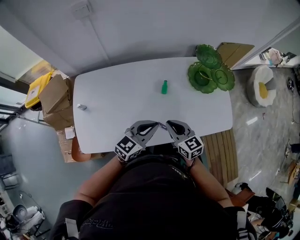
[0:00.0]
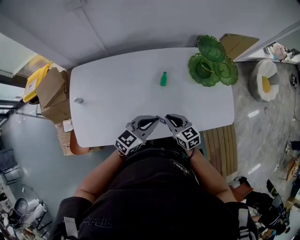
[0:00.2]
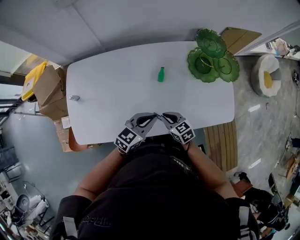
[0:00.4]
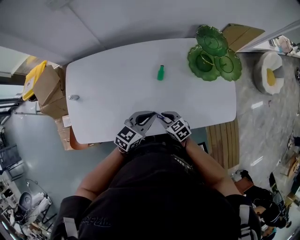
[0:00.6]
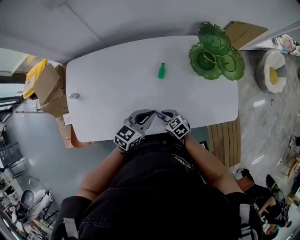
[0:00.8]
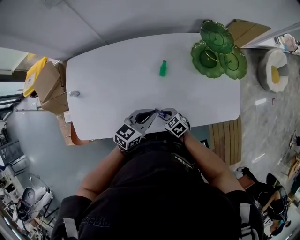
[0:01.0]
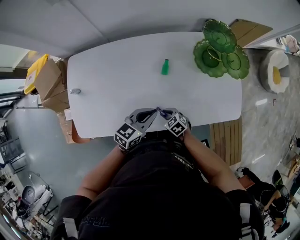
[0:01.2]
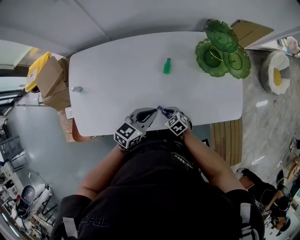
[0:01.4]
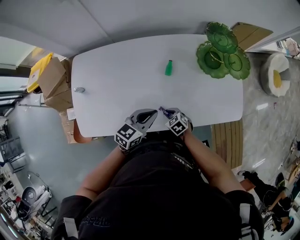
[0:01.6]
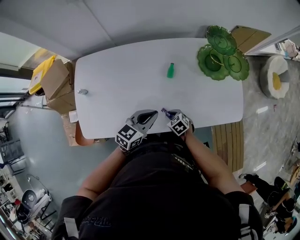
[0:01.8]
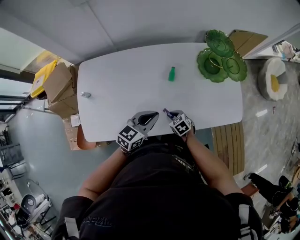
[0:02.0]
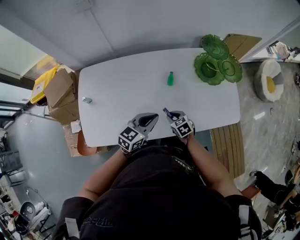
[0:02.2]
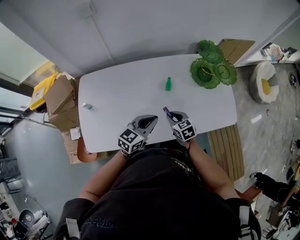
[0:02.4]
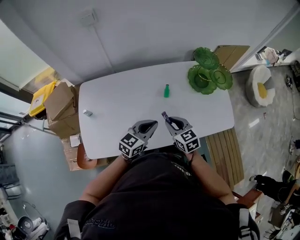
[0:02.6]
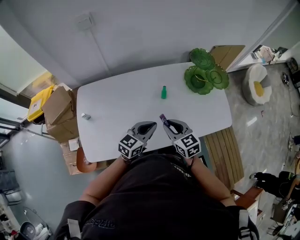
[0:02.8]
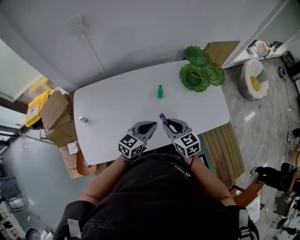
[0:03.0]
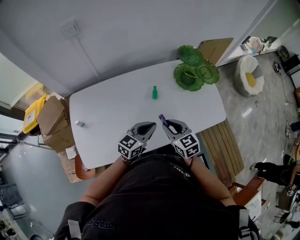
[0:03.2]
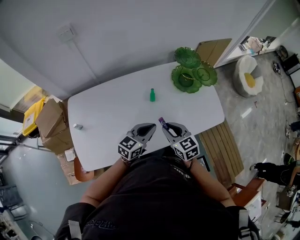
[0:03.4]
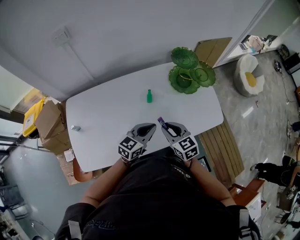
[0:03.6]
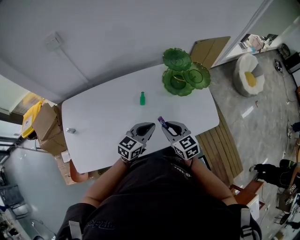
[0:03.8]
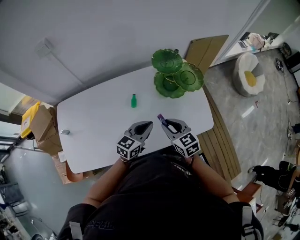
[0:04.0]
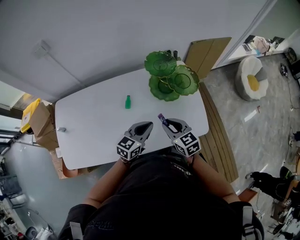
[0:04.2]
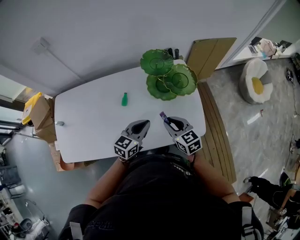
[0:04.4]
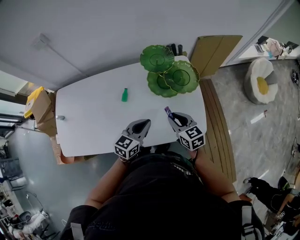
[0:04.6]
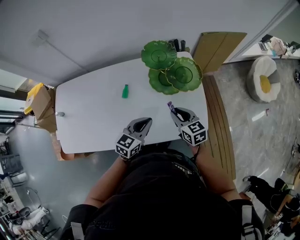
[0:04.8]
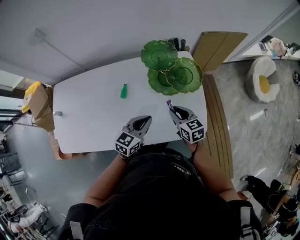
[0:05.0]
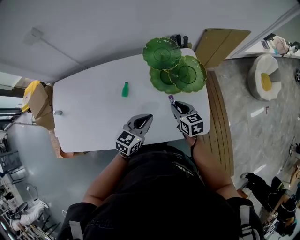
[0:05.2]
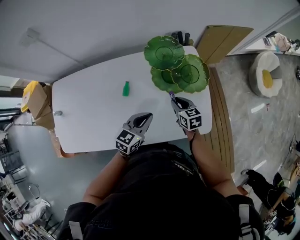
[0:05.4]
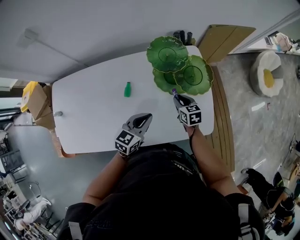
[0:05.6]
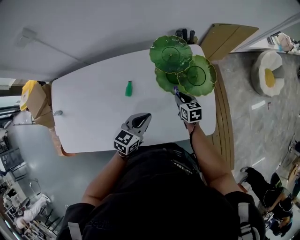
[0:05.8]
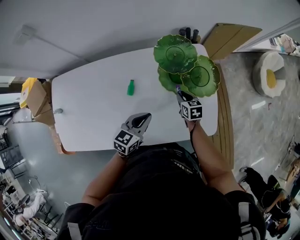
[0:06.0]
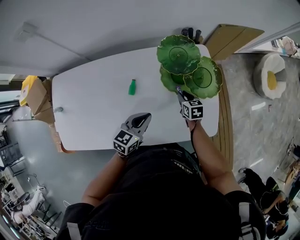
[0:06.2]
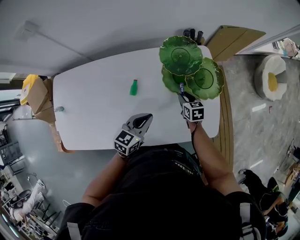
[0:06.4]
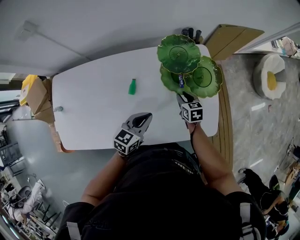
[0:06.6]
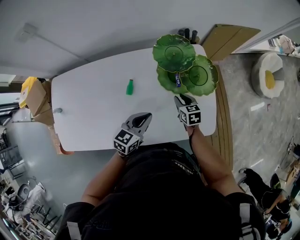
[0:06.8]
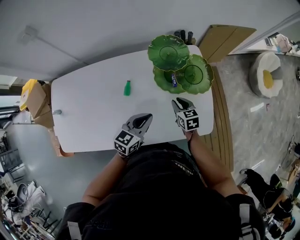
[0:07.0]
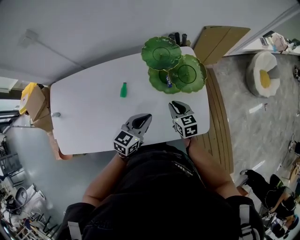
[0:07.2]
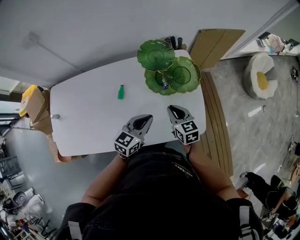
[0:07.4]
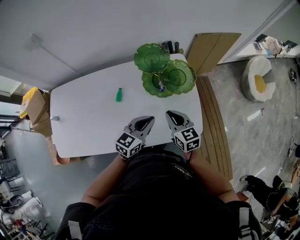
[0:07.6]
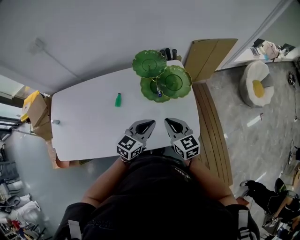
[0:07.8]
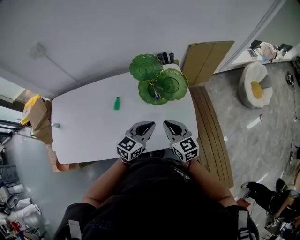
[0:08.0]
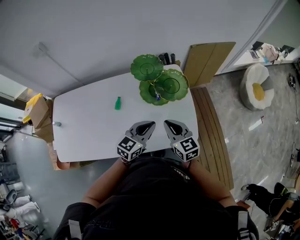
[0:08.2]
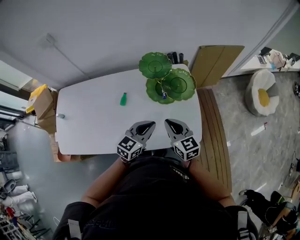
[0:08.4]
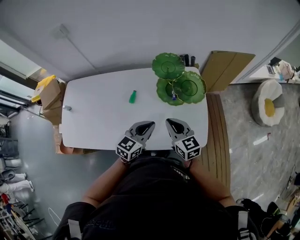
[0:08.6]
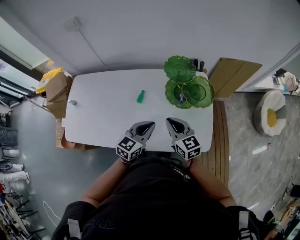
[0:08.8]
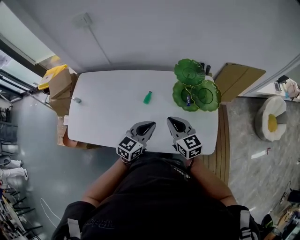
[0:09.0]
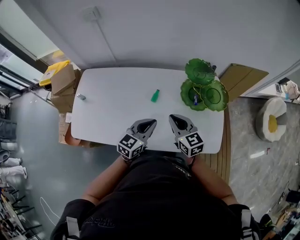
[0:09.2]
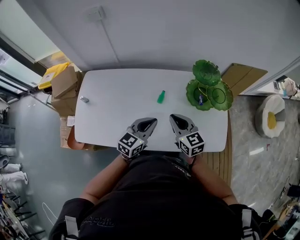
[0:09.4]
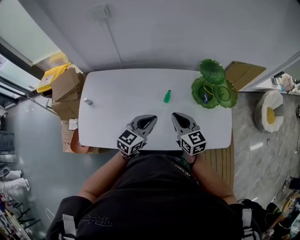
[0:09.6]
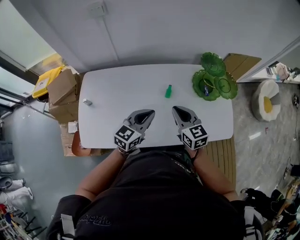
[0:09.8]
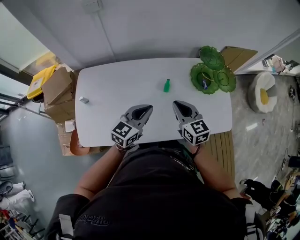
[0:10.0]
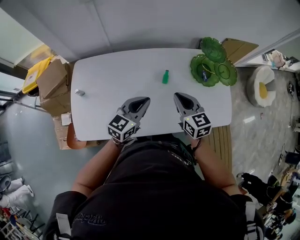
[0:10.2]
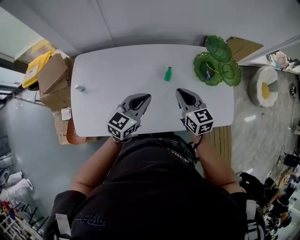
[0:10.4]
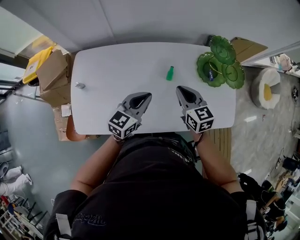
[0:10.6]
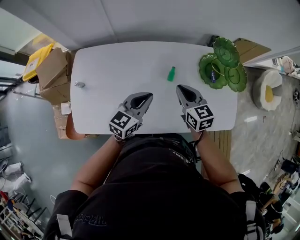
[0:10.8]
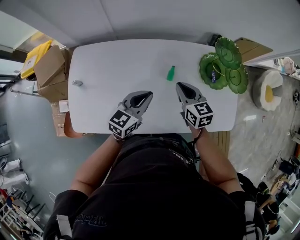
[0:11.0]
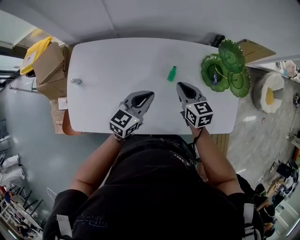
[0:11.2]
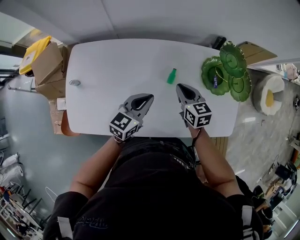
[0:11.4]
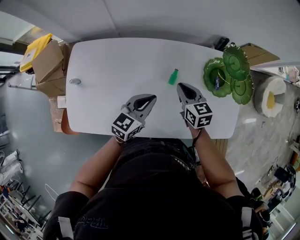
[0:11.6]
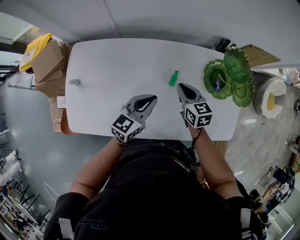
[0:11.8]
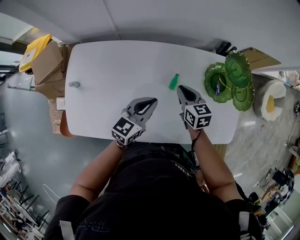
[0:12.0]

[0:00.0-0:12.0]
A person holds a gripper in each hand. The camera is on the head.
0:00.0 to 0:01.6: The left gripper travels downward by approximately 10 cm. Meanwhile the right gripper moves downward, about 25 cm, and tilts its fingers roughly 40 degrees downward.
0:01.6 to 0:03.0: The left gripper is displaced upward by roughly 5 cm. The right gripper is displaced upward by roughly 25 cm, and angles its fingers upward, by roughly 30 degrees.
0:03.0 to 0:04.4: The grippers both shift to the right and forward by roughly 25 cm.
0:04.4 to 0:06.0: The left gripper is displaced downward by some 5 cm; the right gripper is displaced downward and forward by roughly 25 cm, and rotates some 20 degrees.
0:06.0 to 0:07.6: The right gripper is displaced upward and backward by roughly 20 cm, and swivels about 20 degrees, while the left gripper heads to the right and upward, covering approximately 10 cm.
0:07.6 to 0:09.0: Both grippers travel together to the left, roughly 10 cm.
0:09.0 to 0:10.4: Both grippers travel together to the left, roughly 20 cm.
0:10.4 to 0:12.0: The right gripper goes about 15 cm forward and downward; the left gripper shifts some 10 cm forward and downward.

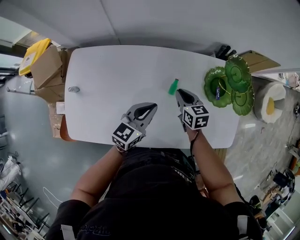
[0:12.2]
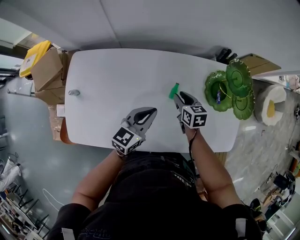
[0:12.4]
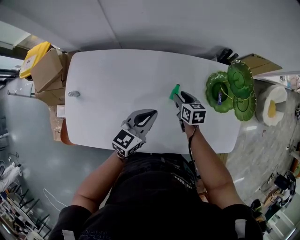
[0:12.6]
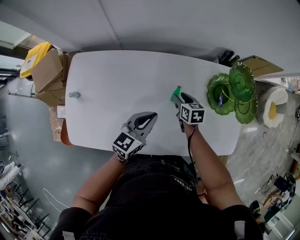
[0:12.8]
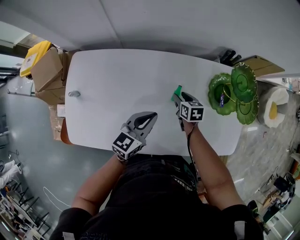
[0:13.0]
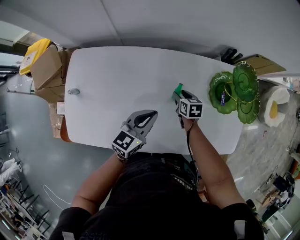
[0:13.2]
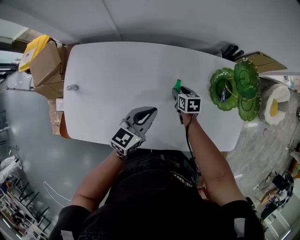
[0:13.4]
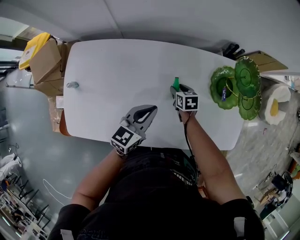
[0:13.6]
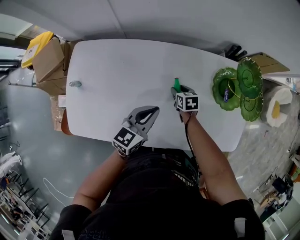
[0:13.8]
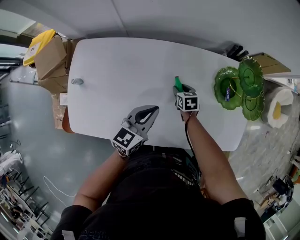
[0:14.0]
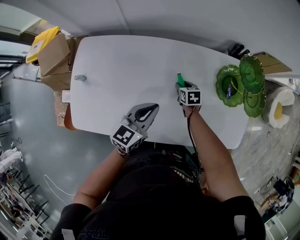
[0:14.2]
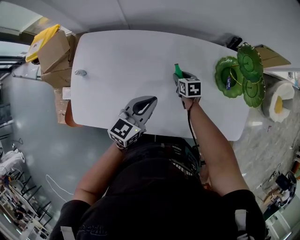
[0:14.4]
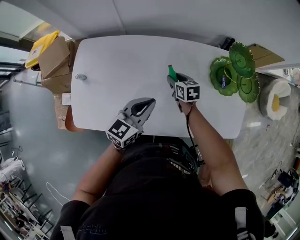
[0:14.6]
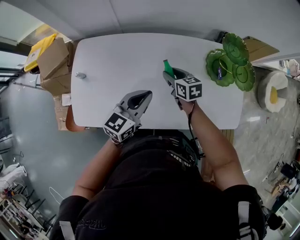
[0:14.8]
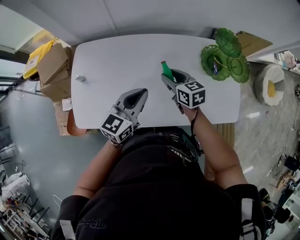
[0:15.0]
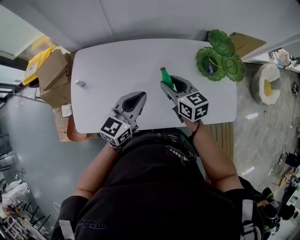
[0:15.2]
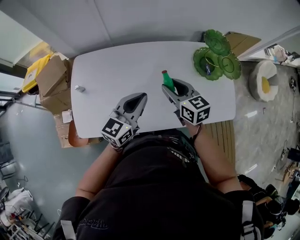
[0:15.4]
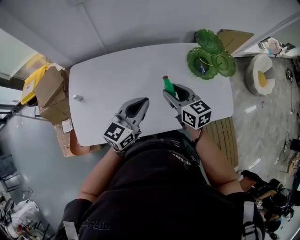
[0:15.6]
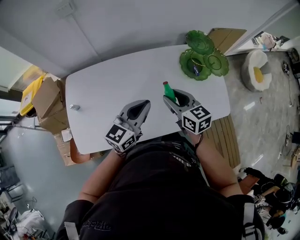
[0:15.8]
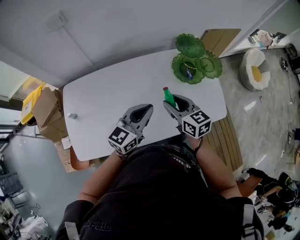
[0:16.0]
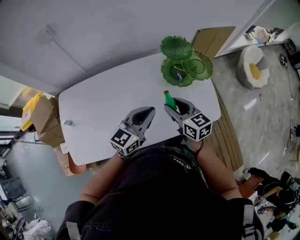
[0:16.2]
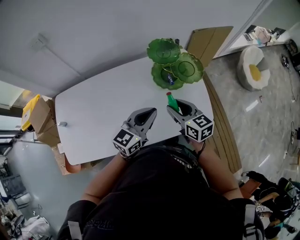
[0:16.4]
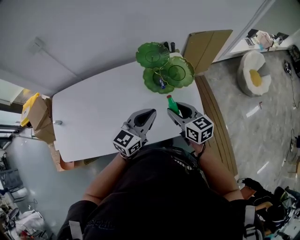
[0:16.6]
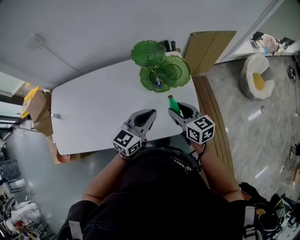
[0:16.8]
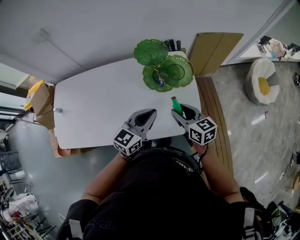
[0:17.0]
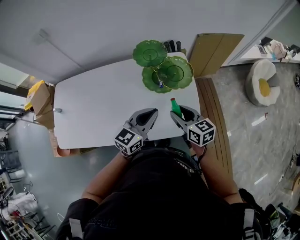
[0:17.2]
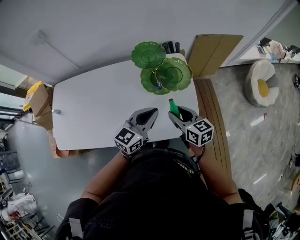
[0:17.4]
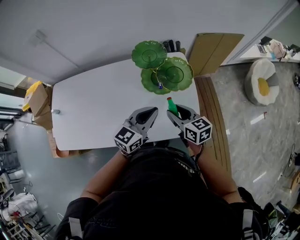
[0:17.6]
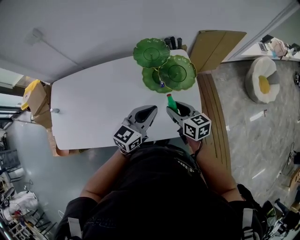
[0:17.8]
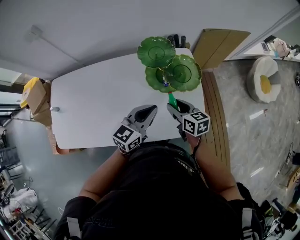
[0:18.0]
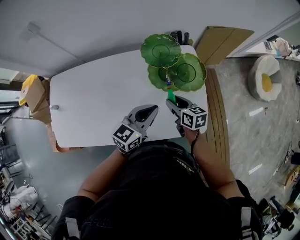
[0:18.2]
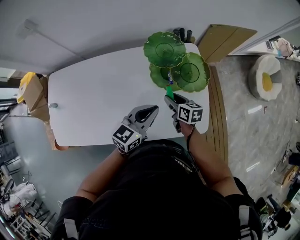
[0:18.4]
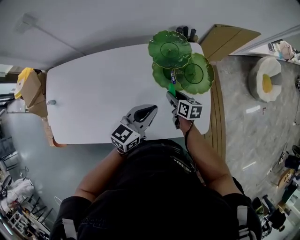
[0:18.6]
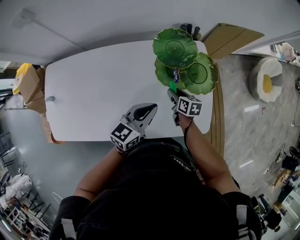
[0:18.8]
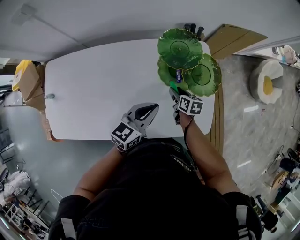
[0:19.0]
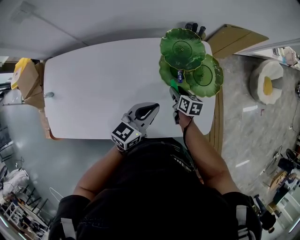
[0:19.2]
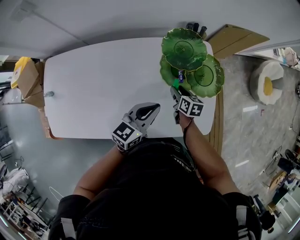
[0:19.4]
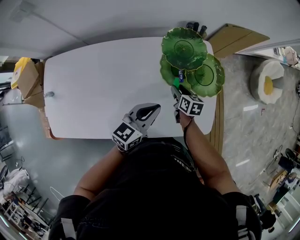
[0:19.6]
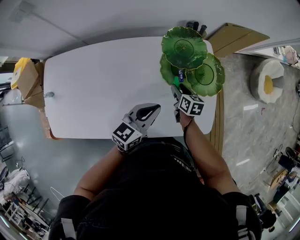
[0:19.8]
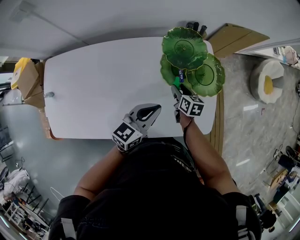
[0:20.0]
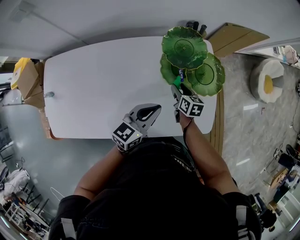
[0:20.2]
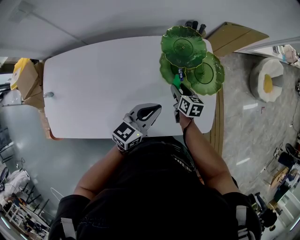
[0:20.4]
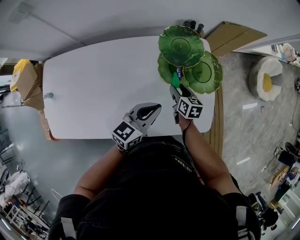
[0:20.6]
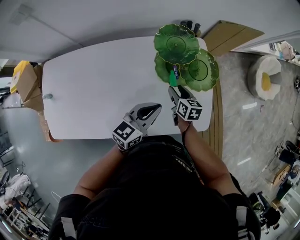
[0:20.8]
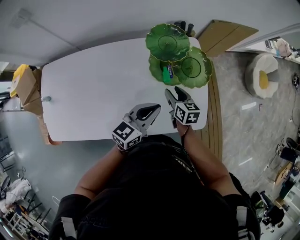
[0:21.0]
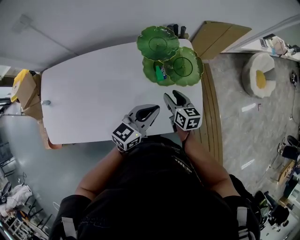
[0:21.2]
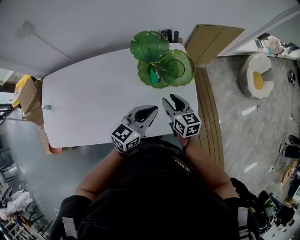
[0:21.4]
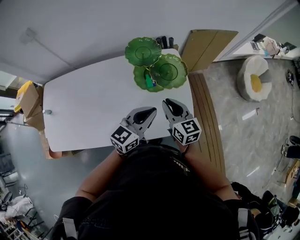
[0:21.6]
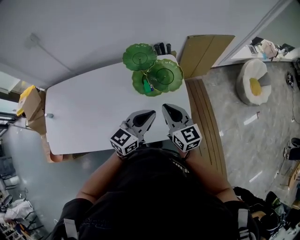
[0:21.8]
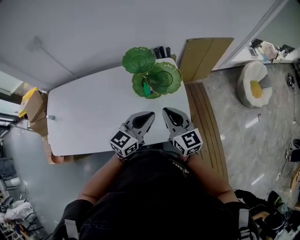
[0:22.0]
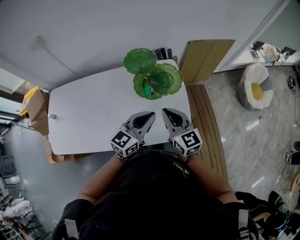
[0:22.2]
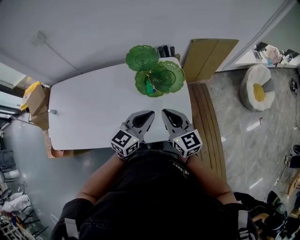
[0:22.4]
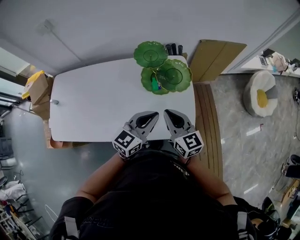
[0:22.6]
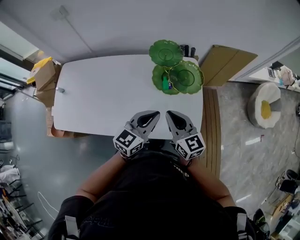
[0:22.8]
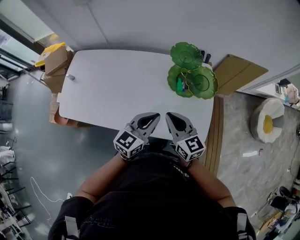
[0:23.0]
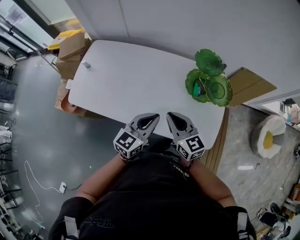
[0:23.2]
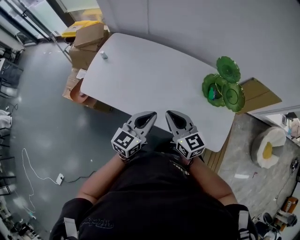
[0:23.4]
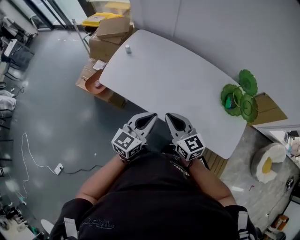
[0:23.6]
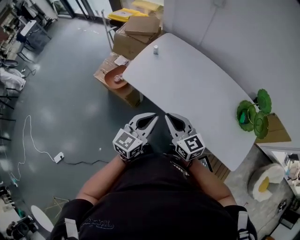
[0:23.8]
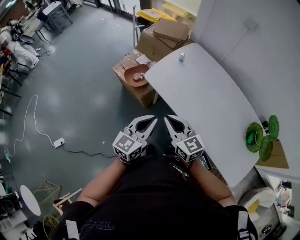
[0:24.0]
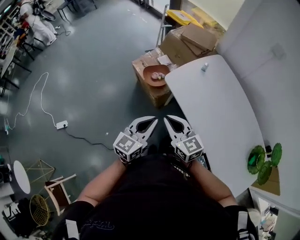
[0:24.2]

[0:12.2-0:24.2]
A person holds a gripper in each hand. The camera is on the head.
0:12.2 to 0:13.8: The right gripper is displaced downward by some 15 cm, and opens up.
0:13.8 to 0:15.2: The right gripper moves upward and backward, roughly 30 cm, and tilts its fingers roughly 30 degrees upward, while the left gripper moves upward, backward and to the left, approximately 15 cm.
0:15.2 to 0:16.6: The two grippers go some 35 cm to the right.
0:16.6 to 0:18.2: The left gripper is displaced forward by some 5 cm. Meanwhile the right gripper shifts roughly 15 cm downward and forward.
0:18.2 to 0:19.8: The left gripper shifts about 5 cm downward and to the left, while the right gripper is displaced downward and forward by some 15 cm.
0:19.8 to 0:21.2: The right gripper shifts approximately 10 cm upward and backward. The left gripper is displaced to the right by about 5 cm.
0:21.2 to 0:22.6: The left gripper heads upward and to the right, covering some 10 cm. Meanwhile the right gripper shifts roughly 20 cm upward and backward, changes its angle by about 30 degrees, and closes its fingers.
0:22.6 to 0:24.2: The two grippers travel together, approximately 70 cm. The left gripper turns by roughly 70 degrees. Meanwhile the right gripper swivels about 70 degrees.
